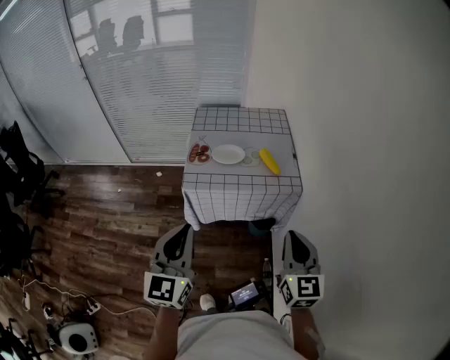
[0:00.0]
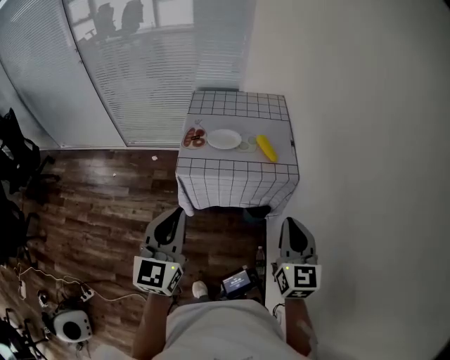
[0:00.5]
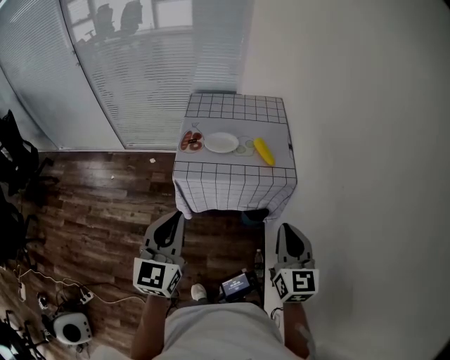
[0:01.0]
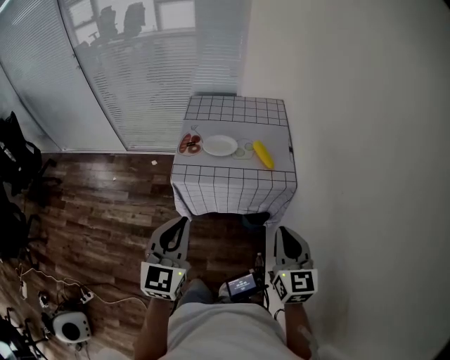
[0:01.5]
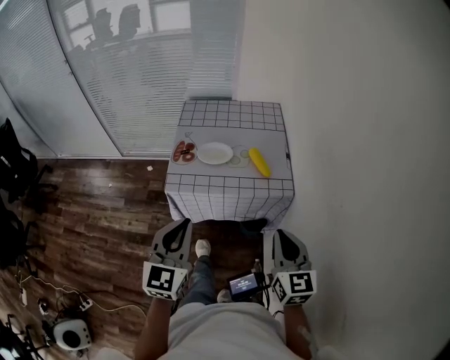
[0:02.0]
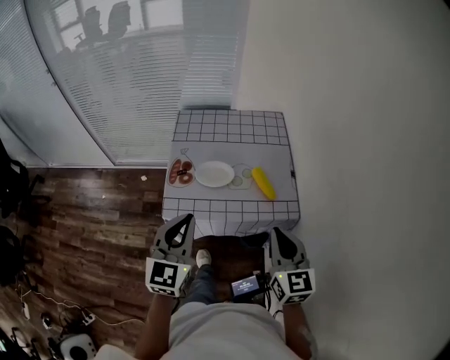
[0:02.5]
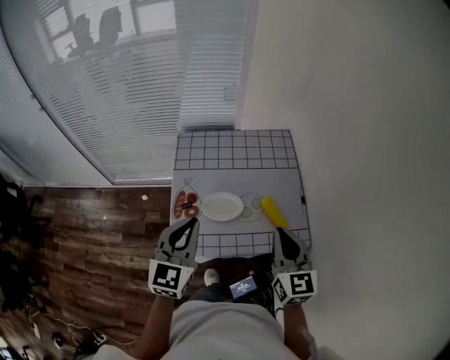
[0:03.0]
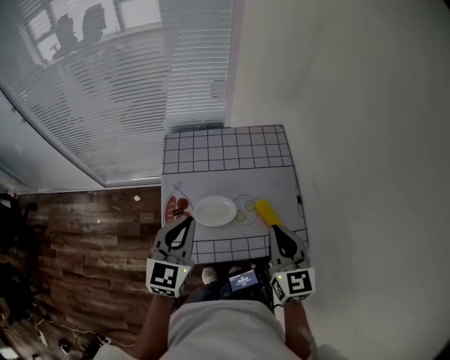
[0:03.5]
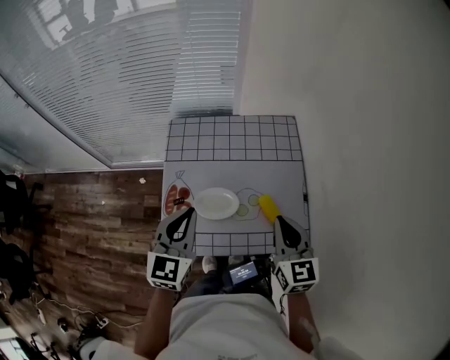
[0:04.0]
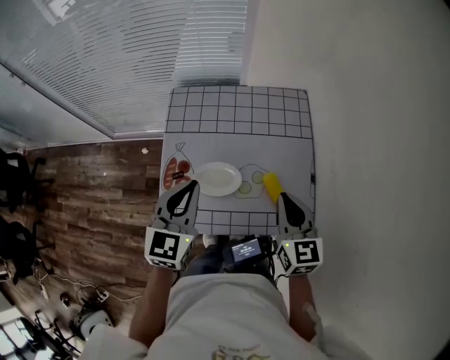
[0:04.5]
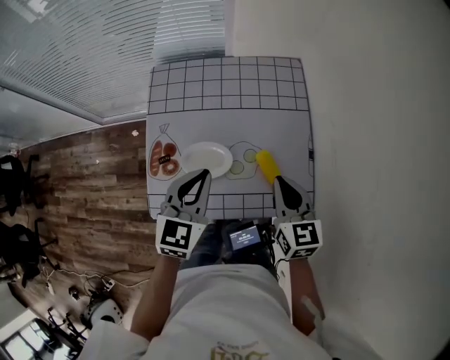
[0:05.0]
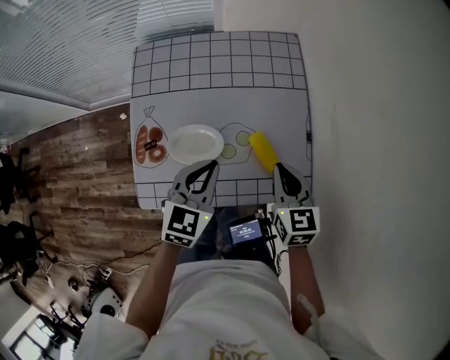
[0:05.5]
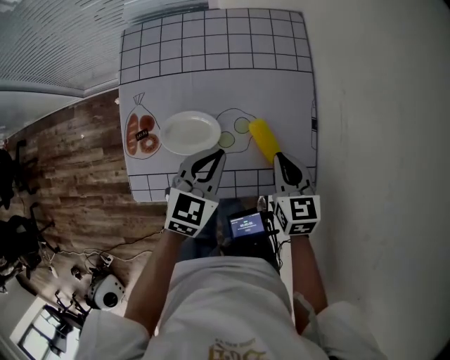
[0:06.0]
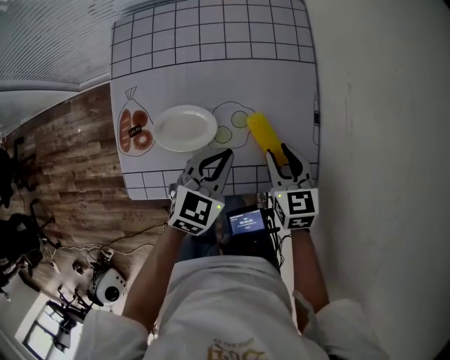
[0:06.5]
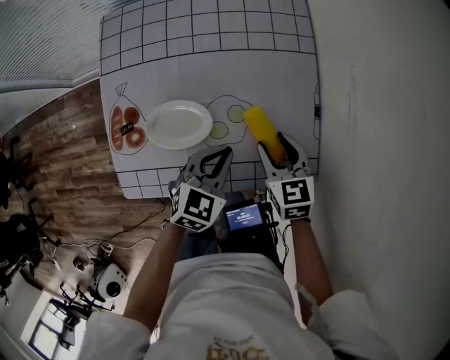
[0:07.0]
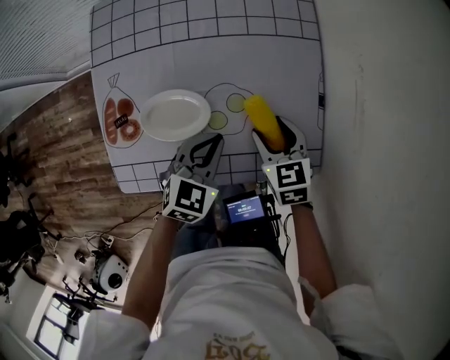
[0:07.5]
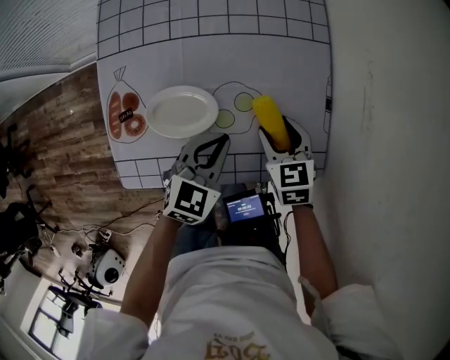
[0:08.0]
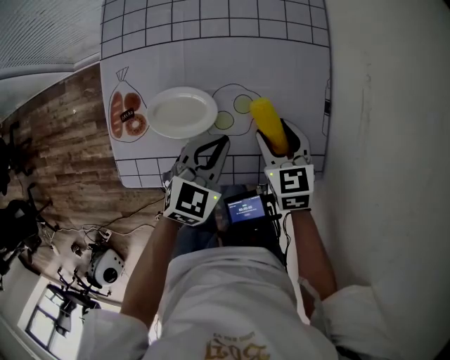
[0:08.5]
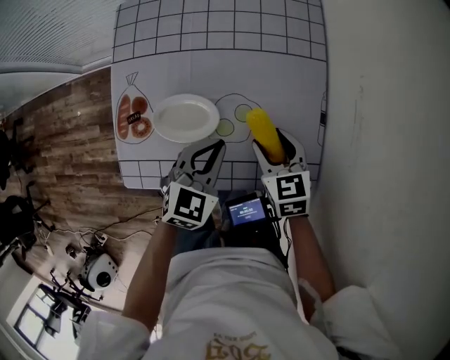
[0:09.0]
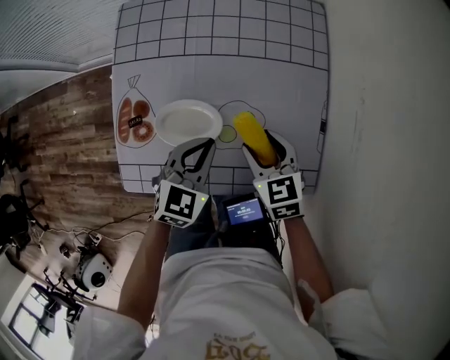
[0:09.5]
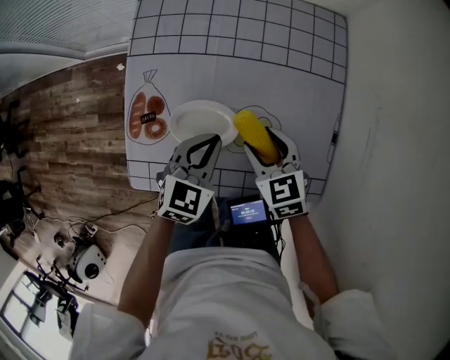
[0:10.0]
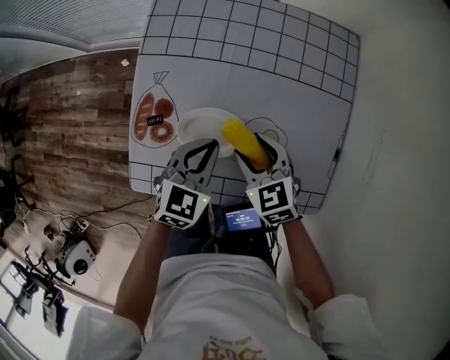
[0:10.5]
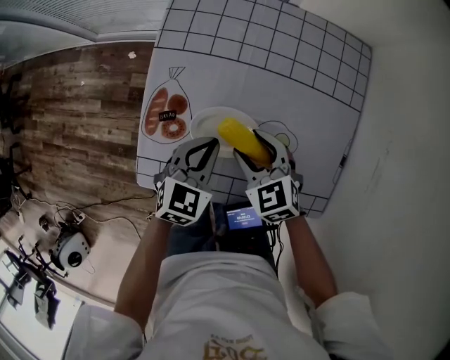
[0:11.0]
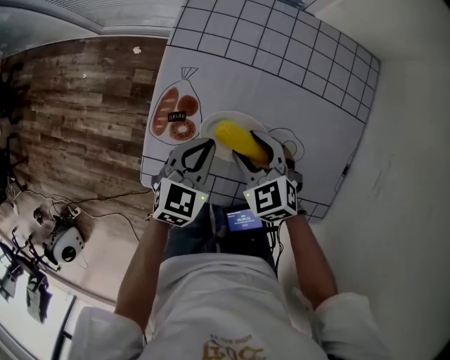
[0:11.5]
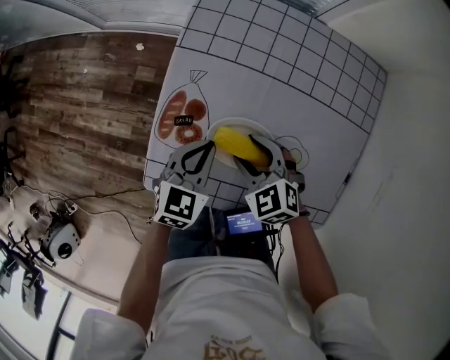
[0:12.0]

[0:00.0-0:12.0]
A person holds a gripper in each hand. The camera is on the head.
0:00.0 to 0:02.0: The right gripper goes about 10 cm forward, while the left gripper travels forward and to the right by some 10 cm.
0:02.0 to 0:04.0: The grippers both shift forward by approximately 35 cm.
0:04.0 to 0:06.0: The left gripper heads downward and to the right, covering about 20 cm, and changes its angle by some 30 degrees. Meanwhile the right gripper shifts about 15 cm downward, and rotates approximately 20 degrees.
0:06.0 to 0:08.0: The two grippers go some 5 cm downward. The right gripper opens up.
0:08.0 to 0:10.0: Both grippers travel together to the left, some 10 cm.
0:10.0 to 0:12.0: The grippers both shift to the left by some 10 cm. The right gripper changes its angle by roughly 30 degrees.

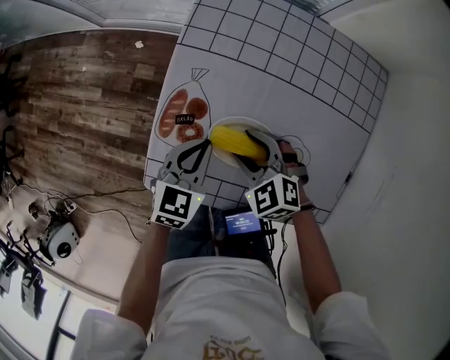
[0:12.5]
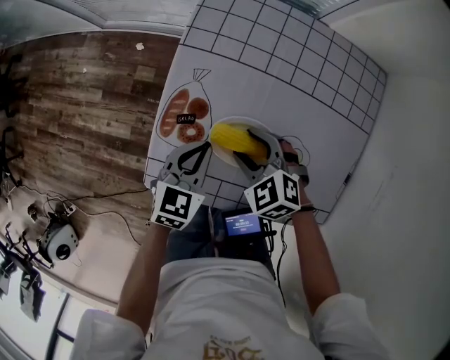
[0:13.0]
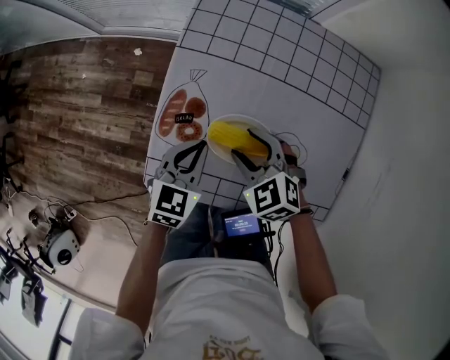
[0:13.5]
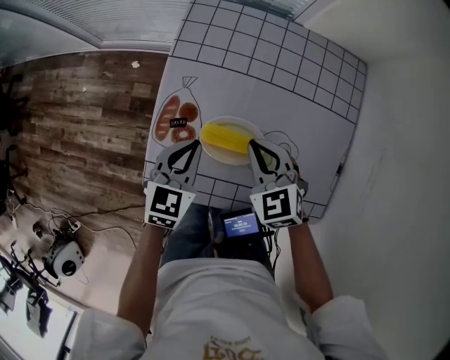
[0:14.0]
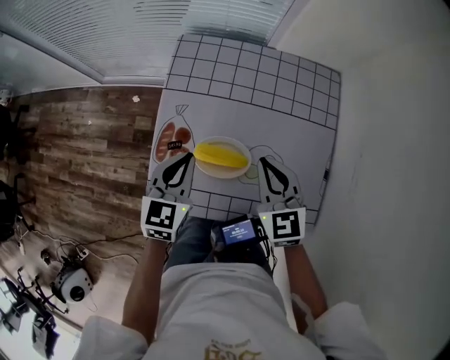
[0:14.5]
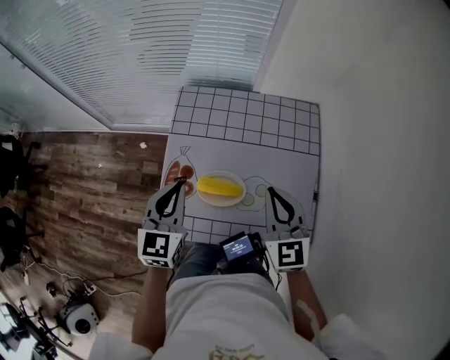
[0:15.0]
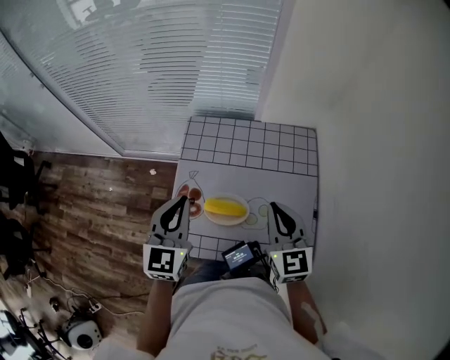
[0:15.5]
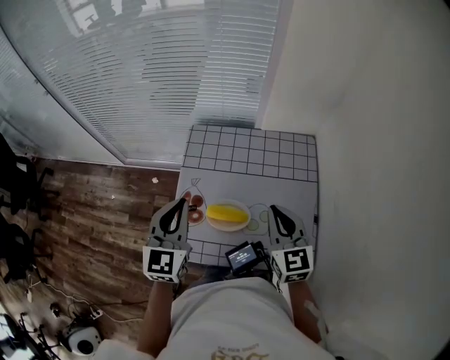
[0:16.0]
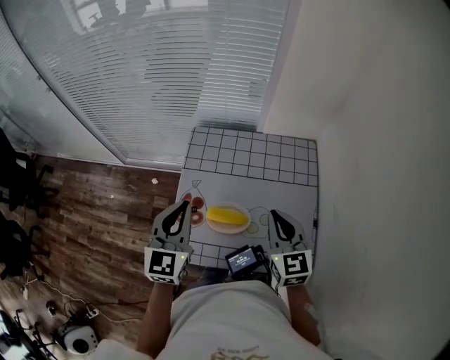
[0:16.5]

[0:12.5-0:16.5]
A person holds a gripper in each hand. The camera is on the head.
0:12.5 to 0:14.5: The right gripper moves upward and to the right, roughly 15 cm, turns by about 50 degrees, and closes its fingers. Meanwhile the left gripper goes roughly 10 cm upward.
0:14.5 to 0:16.5: The left gripper goes approximately 15 cm upward, and rotates about 20 degrees, while the right gripper shifts about 10 cm upward.

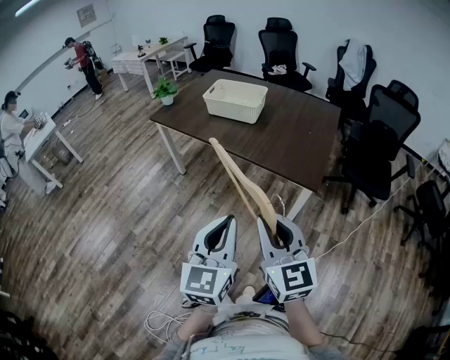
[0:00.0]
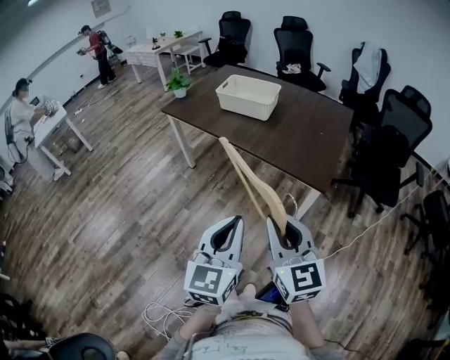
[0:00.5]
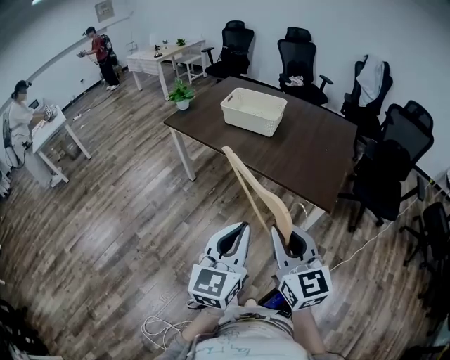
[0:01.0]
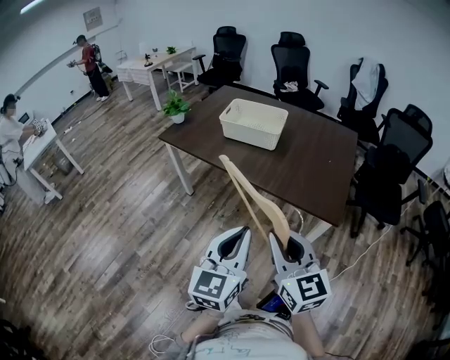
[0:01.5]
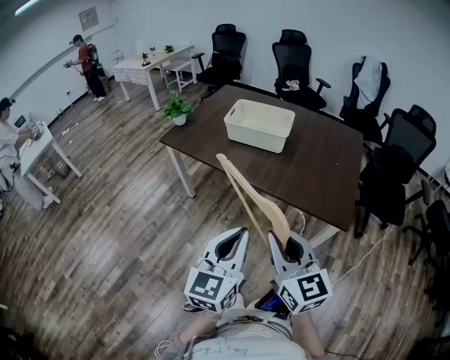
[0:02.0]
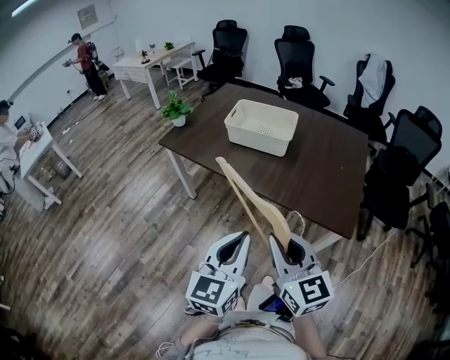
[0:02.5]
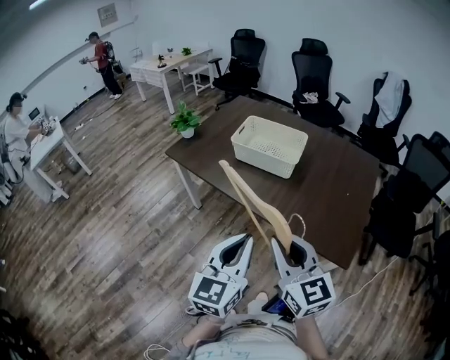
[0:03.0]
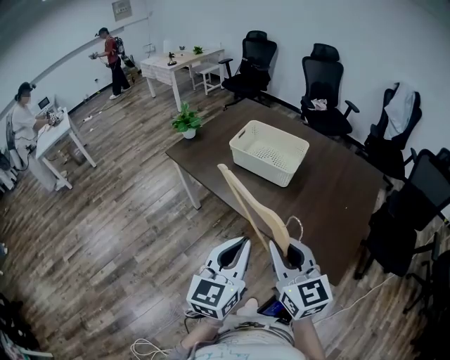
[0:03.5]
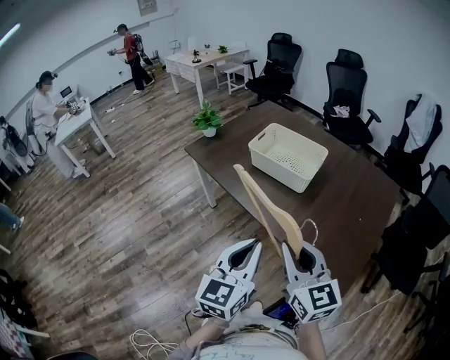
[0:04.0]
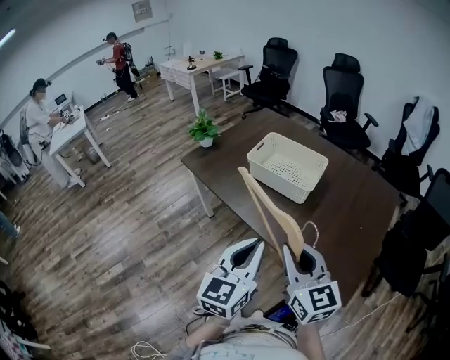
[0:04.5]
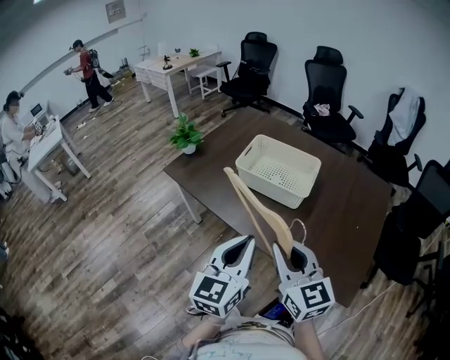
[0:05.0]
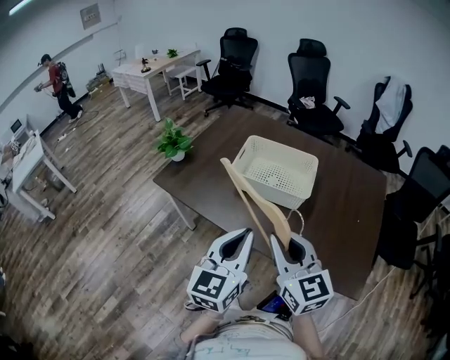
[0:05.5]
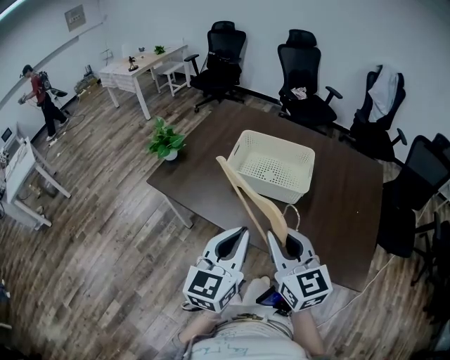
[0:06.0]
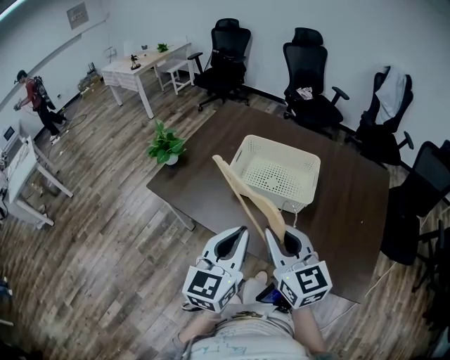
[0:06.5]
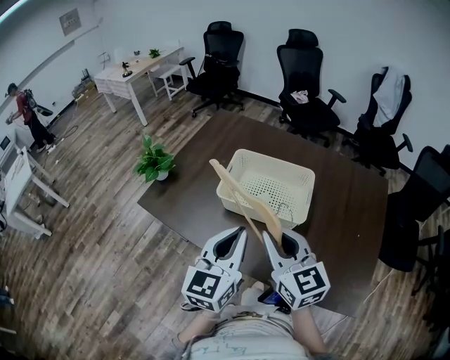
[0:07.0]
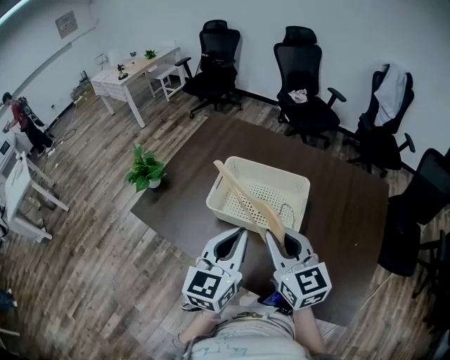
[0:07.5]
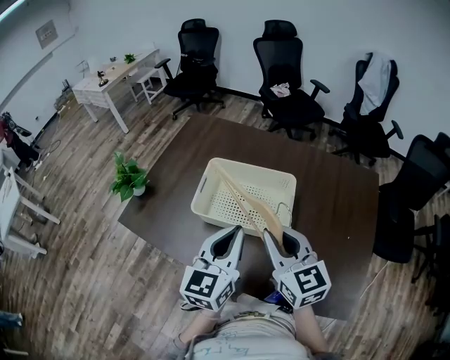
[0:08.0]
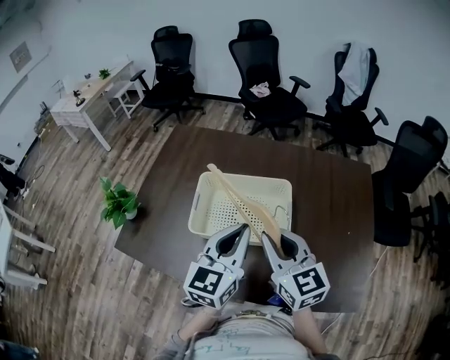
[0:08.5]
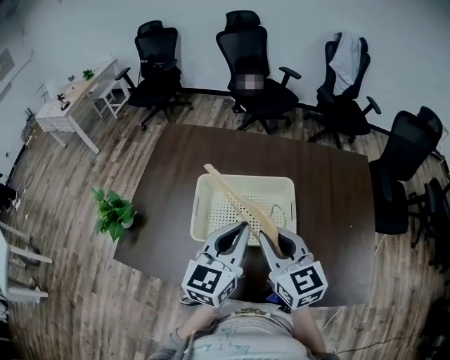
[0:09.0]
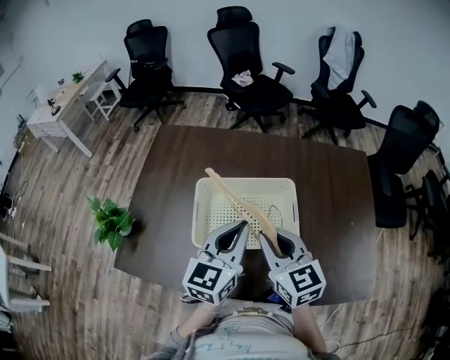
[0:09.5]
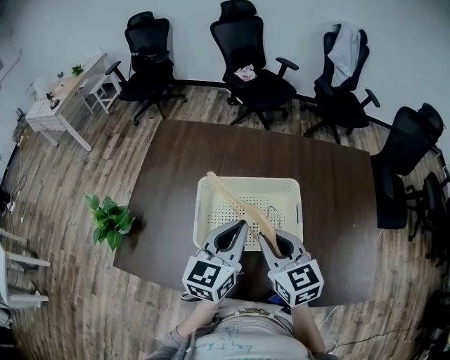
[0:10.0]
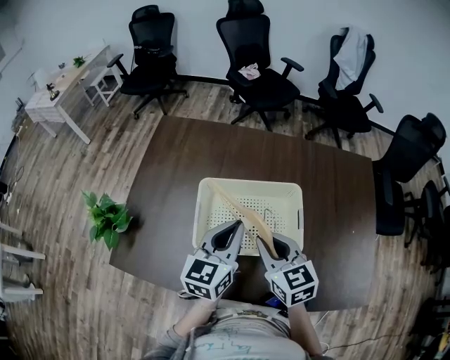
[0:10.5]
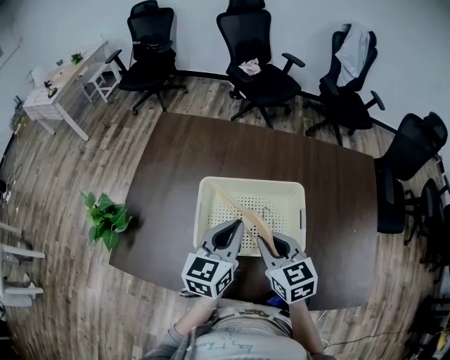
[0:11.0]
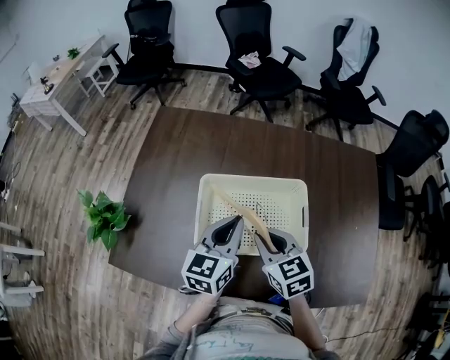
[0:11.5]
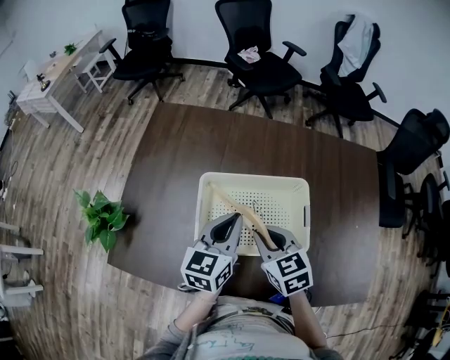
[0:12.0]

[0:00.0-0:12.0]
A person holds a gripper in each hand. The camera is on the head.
0:00.0 to 0:02.0: The grippers both shift forward and to the left by about 20 cm.
0:02.0 to 0:04.0: The two grippers go roughly 20 cm forward and to the right.
0:04.0 to 0:06.0: The grippers both shift forward and to the left by some 20 cm.
0:06.0 to 0:08.0: Both grippers travel together forward and to the right, approximately 25 cm.
0:08.0 to 0:10.0: The right gripper shifts approximately 15 cm forward, to the left and downward, while the left gripper moves forward, about 15 cm.
0:10.0 to 0:12.0: The left gripper goes about 10 cm downward and forward, while the right gripper travels downward by approximately 10 cm.
